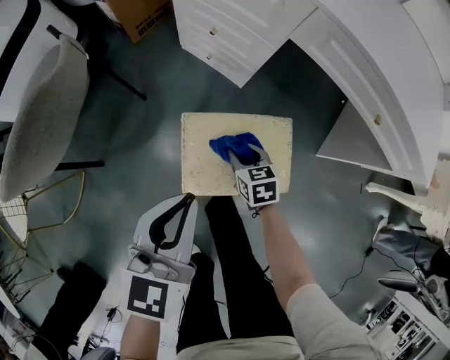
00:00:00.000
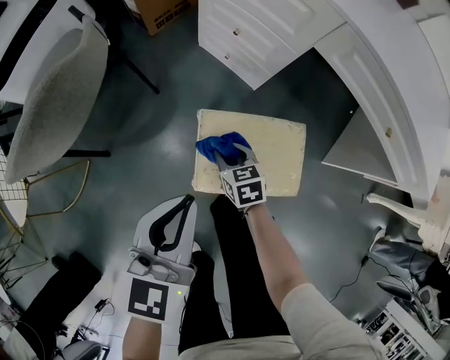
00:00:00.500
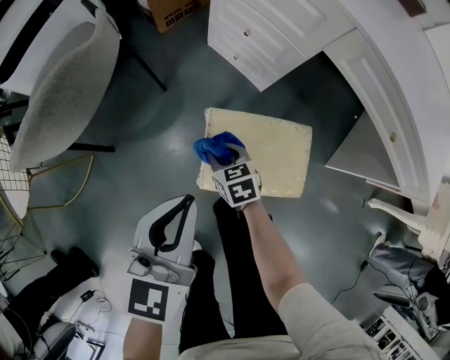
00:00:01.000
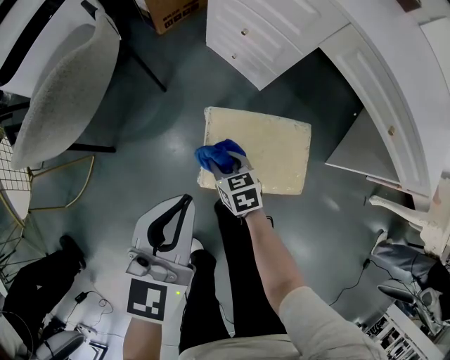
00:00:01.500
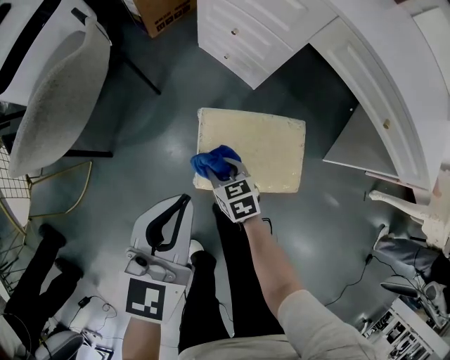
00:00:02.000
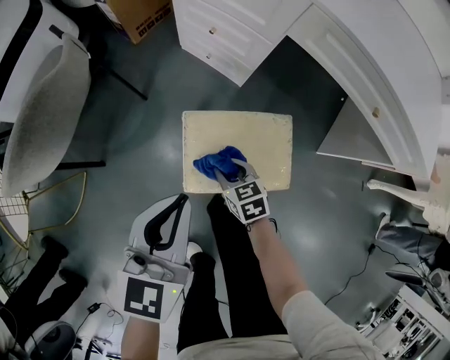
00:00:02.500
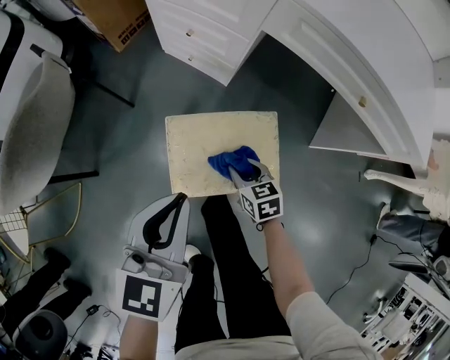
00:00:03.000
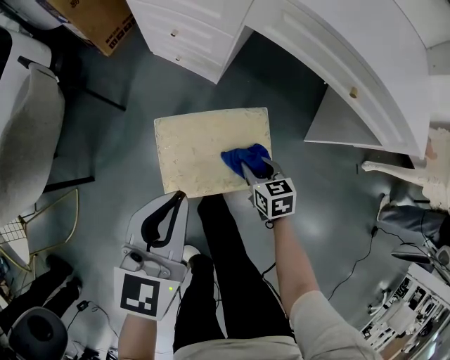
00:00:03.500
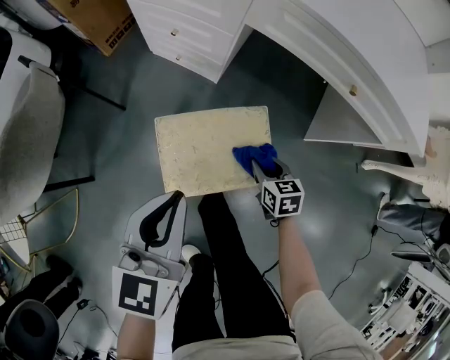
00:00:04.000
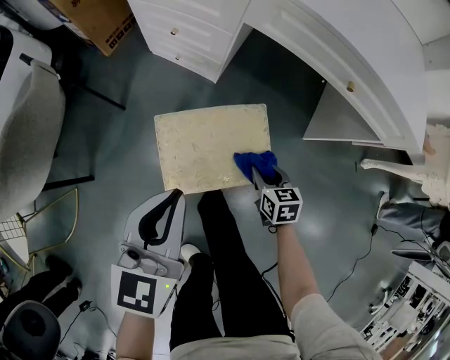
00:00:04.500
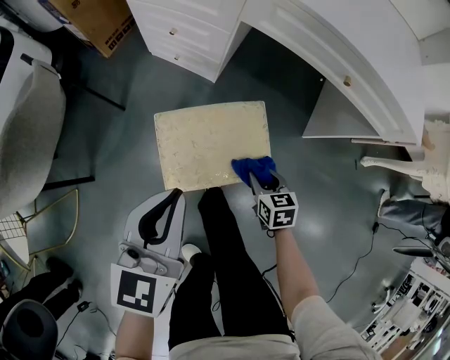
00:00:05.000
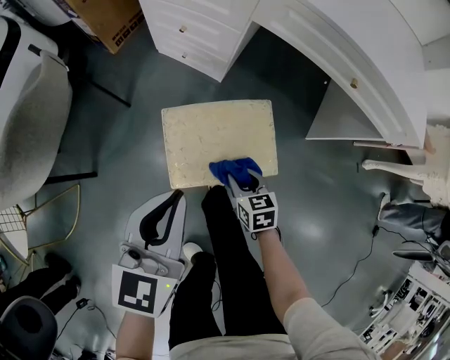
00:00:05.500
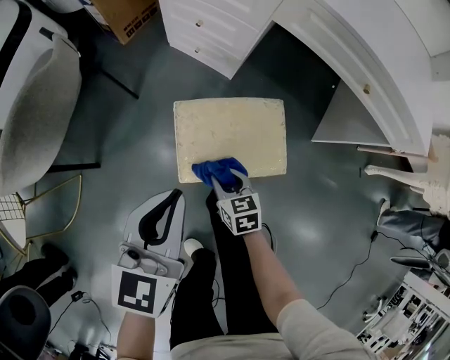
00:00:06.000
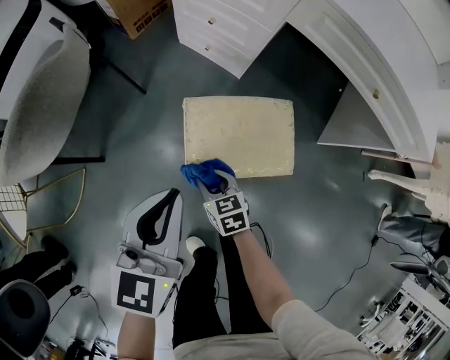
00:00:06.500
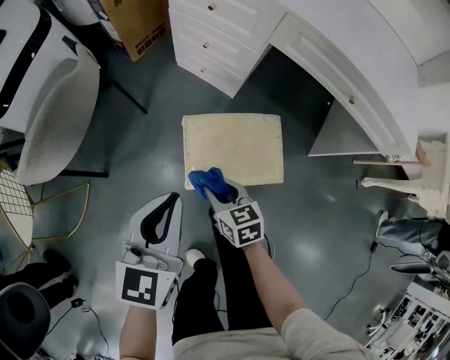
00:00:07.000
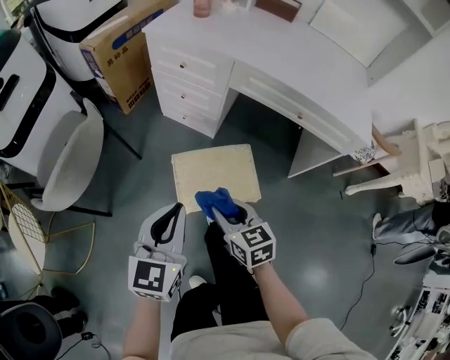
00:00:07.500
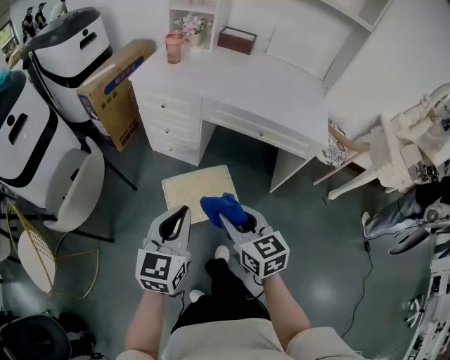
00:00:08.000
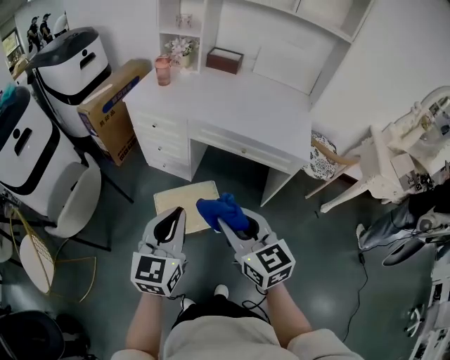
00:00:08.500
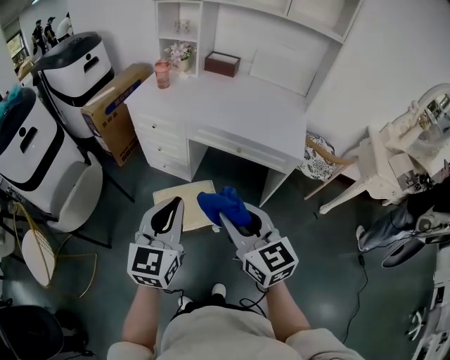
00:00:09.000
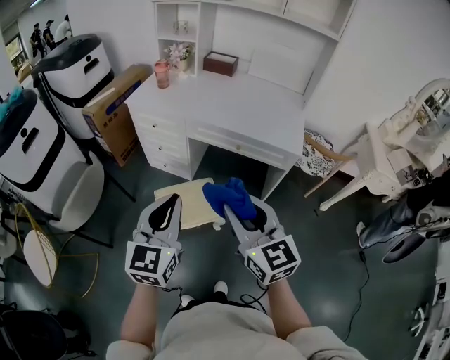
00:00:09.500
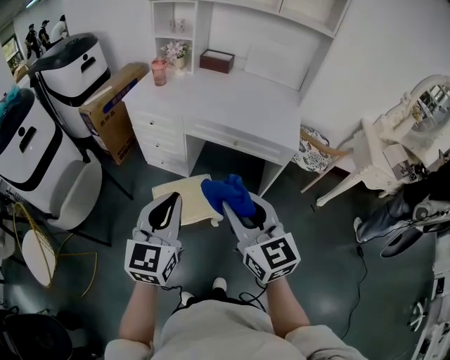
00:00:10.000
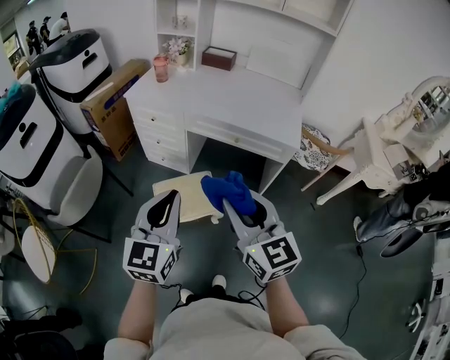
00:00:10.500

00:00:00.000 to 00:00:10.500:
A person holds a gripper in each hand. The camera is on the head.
00:00:00.000 to 00:00:02.000: The right gripper moves to the left and backward, about 15 cm. The left gripper heads to the left, covering approximately 5 cm.
00:00:02.000 to 00:00:04.000: The right gripper heads to the right, covering some 25 cm, and changes its angle by about 30 degrees. The left gripper shifts some 10 cm to the right.
00:00:04.000 to 00:00:06.500: The left gripper heads to the left and backward, covering approximately 10 cm, while the right gripper is displaced to the left by approximately 25 cm.
00:00:06.500 to 00:00:08.500: The left gripper goes some 35 cm upward and to the right, and changes its angle by approximately 20 degrees. The right gripper travels upward by approximately 60 cm, and tips its fingers upward by approximately 30 degrees.
00:00:08.500 to 00:00:10.500: The grippers both shift upward and backward by roughly 10 cm.

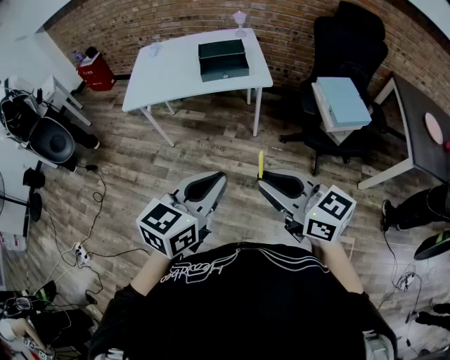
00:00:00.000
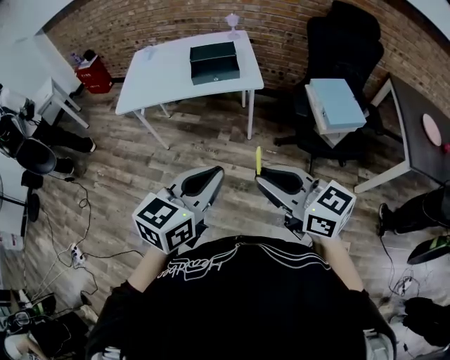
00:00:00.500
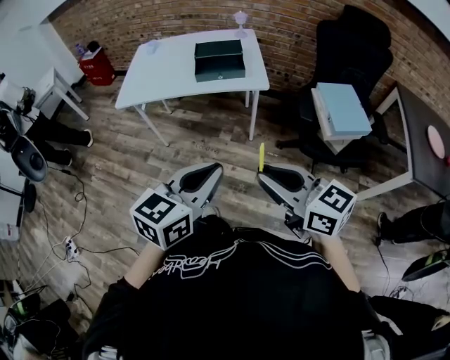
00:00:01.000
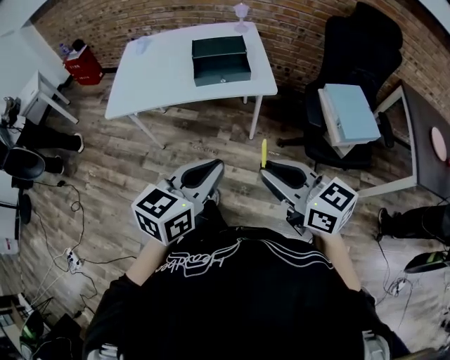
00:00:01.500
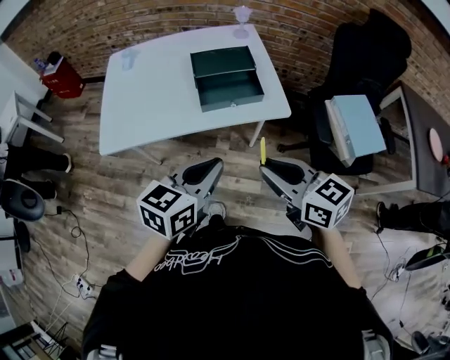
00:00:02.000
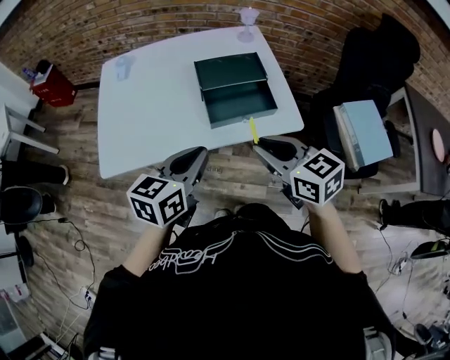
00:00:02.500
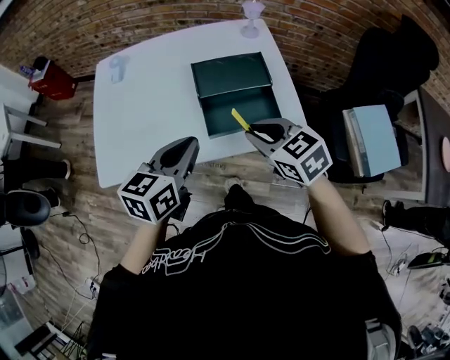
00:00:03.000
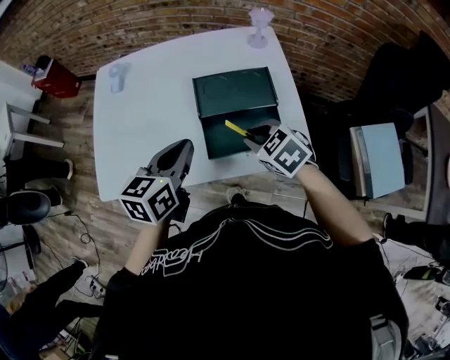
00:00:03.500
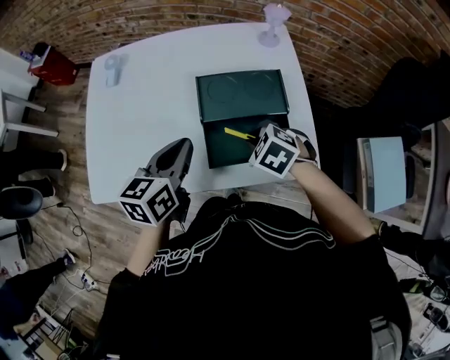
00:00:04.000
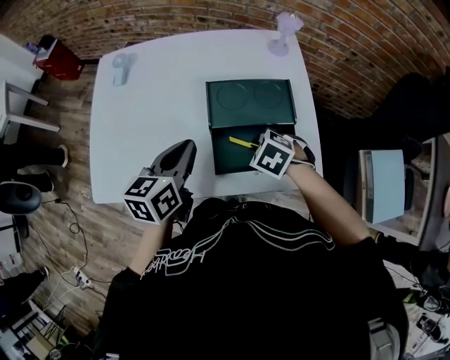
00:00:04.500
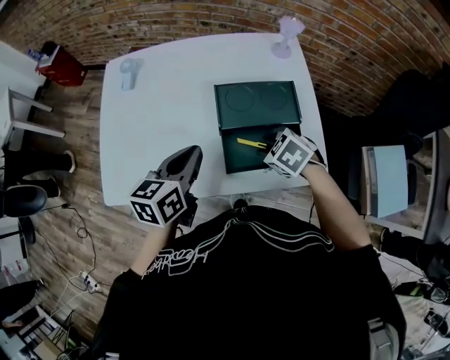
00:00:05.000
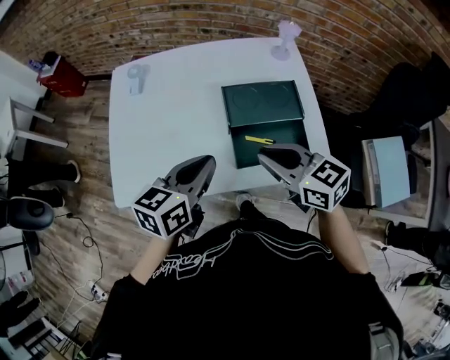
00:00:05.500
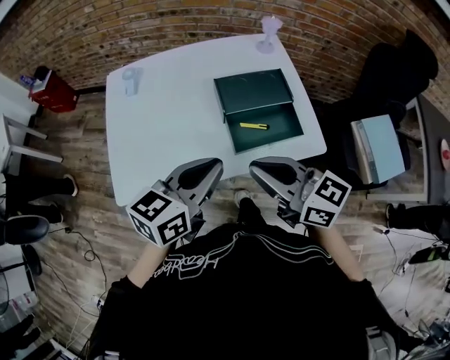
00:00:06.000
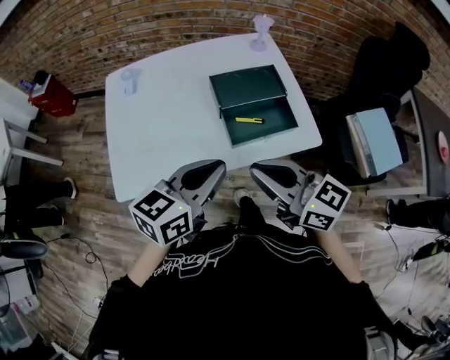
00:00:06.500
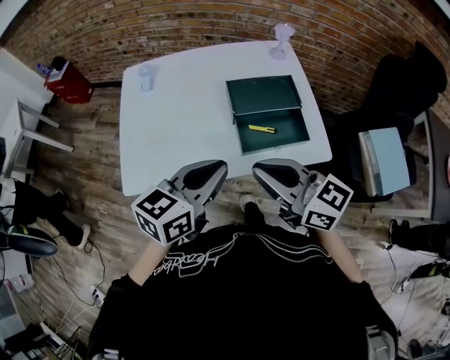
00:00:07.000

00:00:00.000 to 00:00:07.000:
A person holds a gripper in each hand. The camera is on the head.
00:00:00.000 to 00:00:02.000: Both grippers move forward, about 30 cm.
00:00:02.000 to 00:00:03.500: The left gripper shifts approximately 25 cm forward. The right gripper travels forward and downward by roughly 35 cm, and points its fingers roughly 30 degrees further downward.
00:00:03.500 to 00:00:05.000: The right gripper is displaced downward by about 5 cm, and opens. Meanwhile the left gripper ends up some 5 cm from where it was.
00:00:05.000 to 00:00:07.000: The left gripper heads backward and upward, covering roughly 15 cm, and turns by some 20 degrees. Meanwhile the right gripper is displaced upward and backward by roughly 30 cm, points its fingers approximately 60 degrees further upward, and closes up.

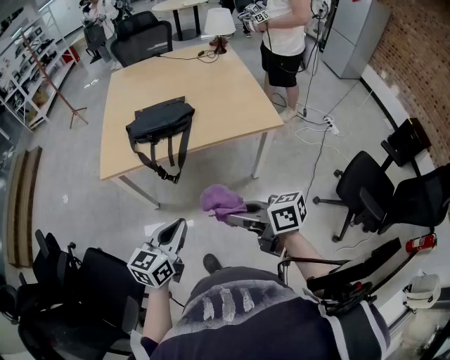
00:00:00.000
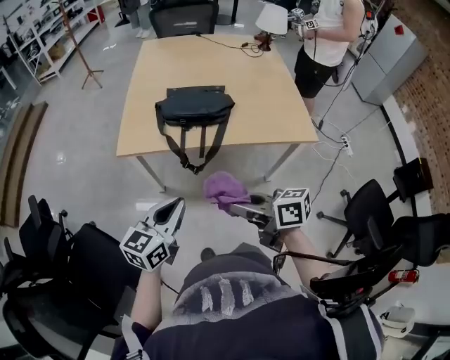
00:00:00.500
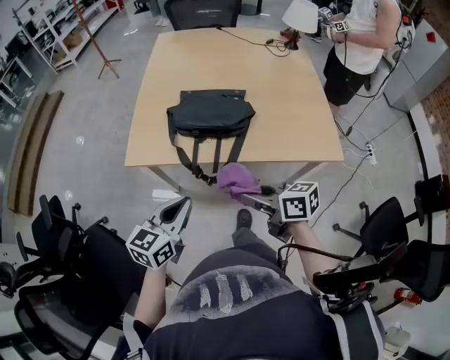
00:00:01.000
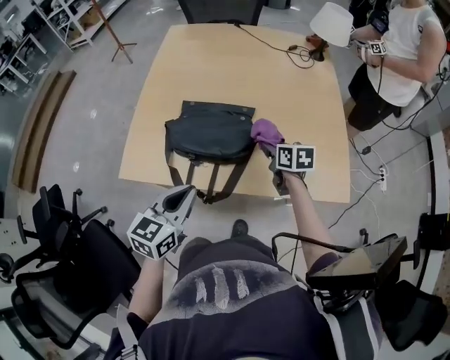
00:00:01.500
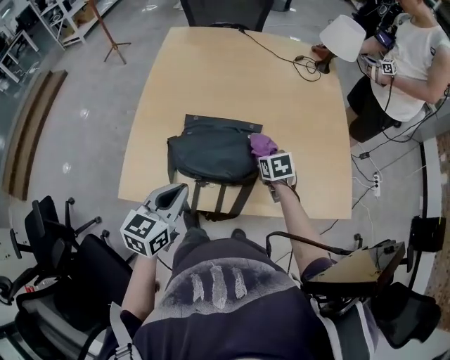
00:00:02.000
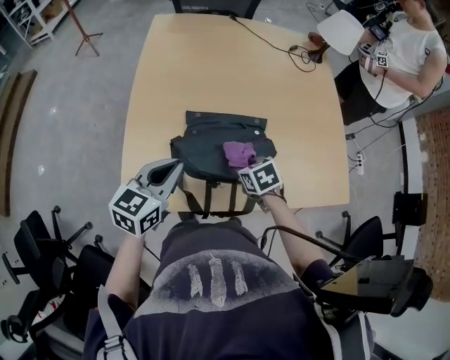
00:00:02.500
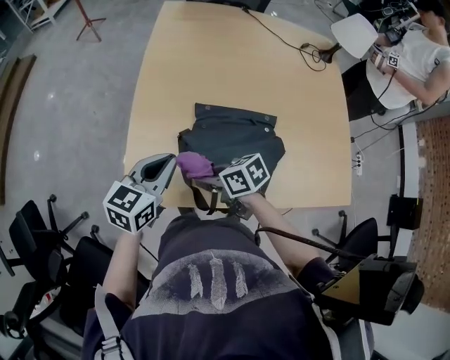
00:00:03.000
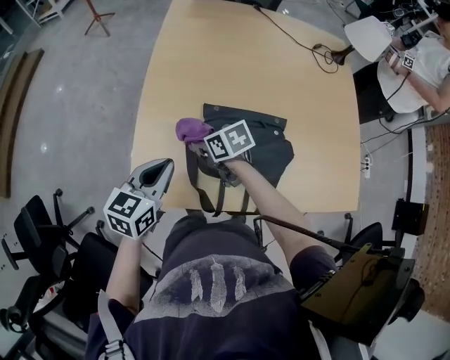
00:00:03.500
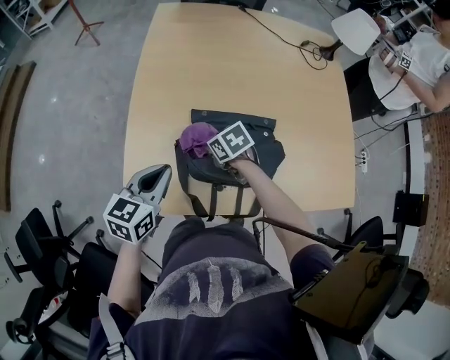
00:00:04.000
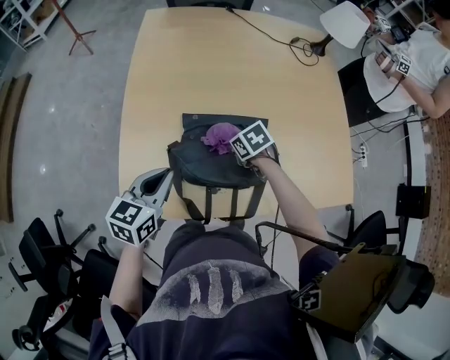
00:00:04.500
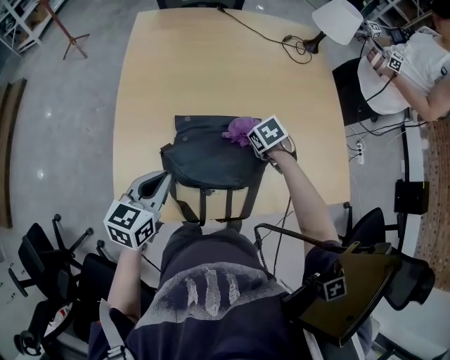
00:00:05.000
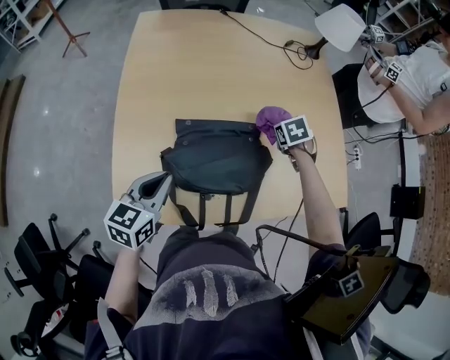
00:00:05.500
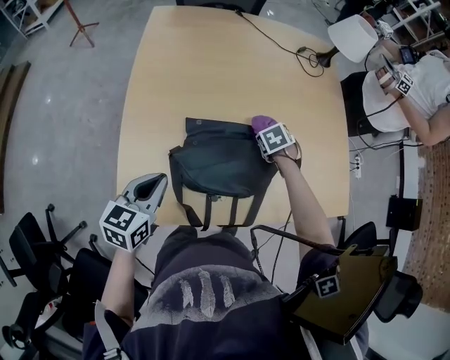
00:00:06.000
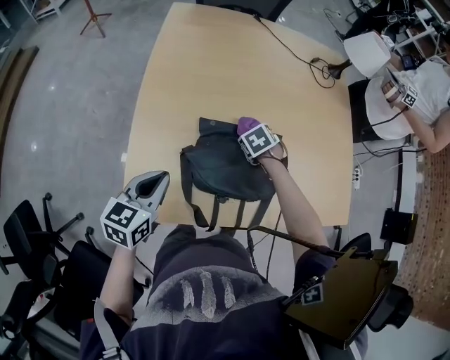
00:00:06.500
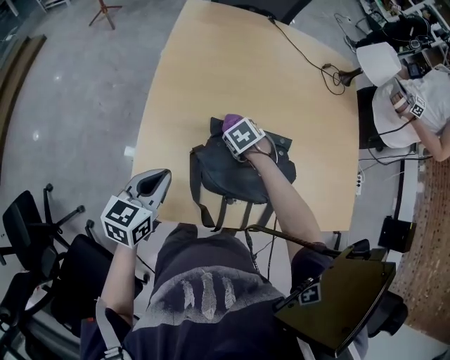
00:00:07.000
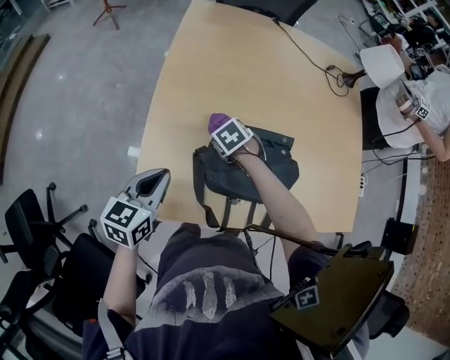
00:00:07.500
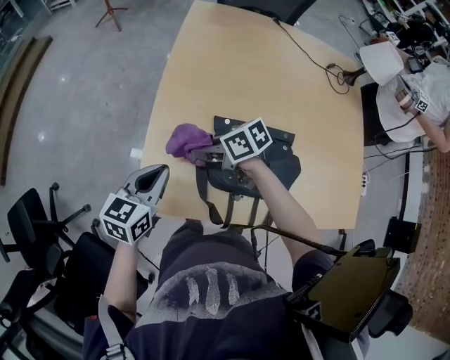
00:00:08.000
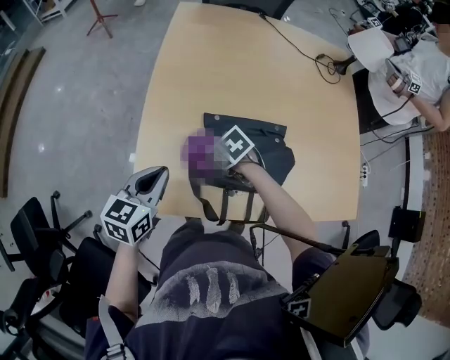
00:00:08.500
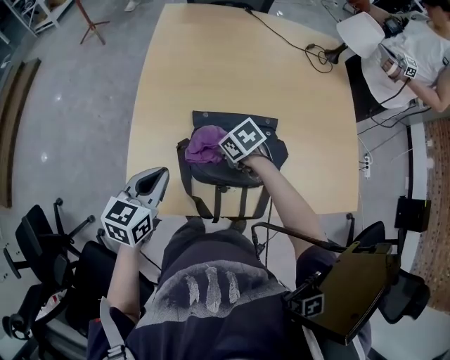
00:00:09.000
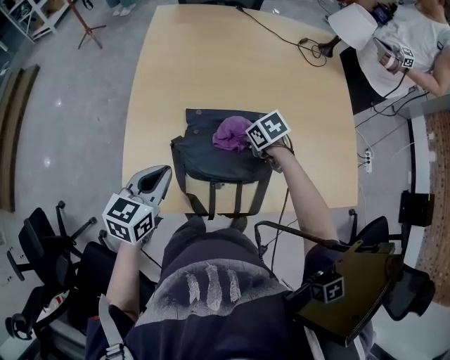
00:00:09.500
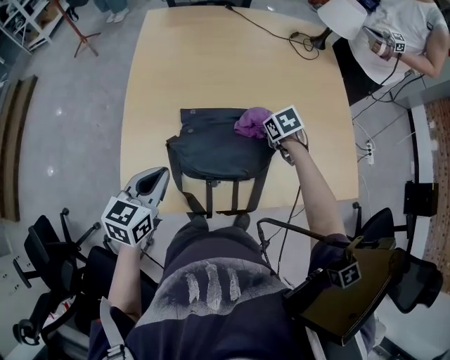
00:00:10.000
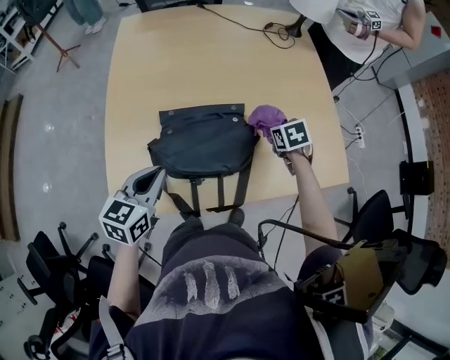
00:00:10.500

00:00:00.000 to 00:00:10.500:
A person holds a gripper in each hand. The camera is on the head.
00:00:00.000 to 00:00:02.000: The pair of grippers is taken forward, approximately 50 cm. The right gripper angles its fingers downward, by some 40 degrees.
00:00:02.000 to 00:00:04.000: The right gripper moves to the left, about 25 cm, and changes its angle by approximately 20 degrees, while the left gripper heads forward and to the left, covering roughly 15 cm.
00:00:04.000 to 00:00:06.500: The right gripper changes its angle by approximately 30 degrees.
00:00:06.500 to 00:00:08.500: The right gripper goes upward and returns, some 10 cm each way, and changes its angle by roughly 30 degrees.
00:00:08.500 to 00:00:10.500: The right gripper moves roughly 35 cm, and swivels approximately 40 degrees, while the left gripper moves approximately 10 cm.
